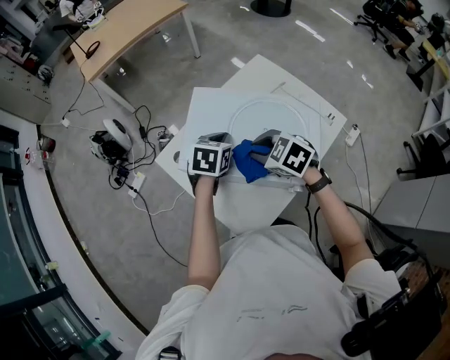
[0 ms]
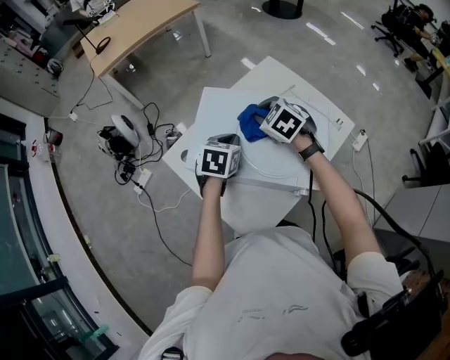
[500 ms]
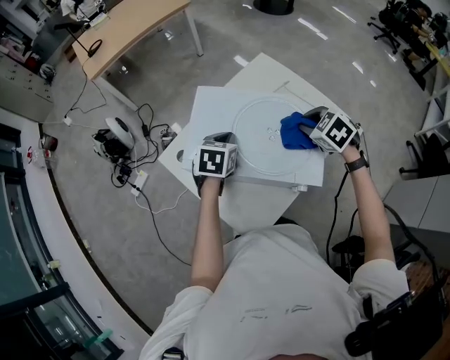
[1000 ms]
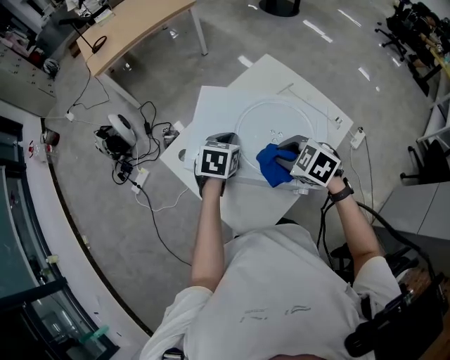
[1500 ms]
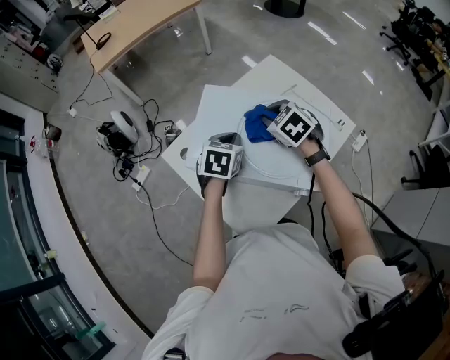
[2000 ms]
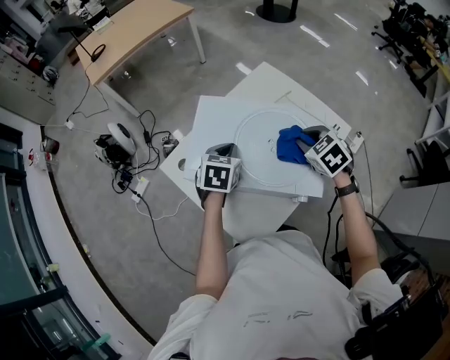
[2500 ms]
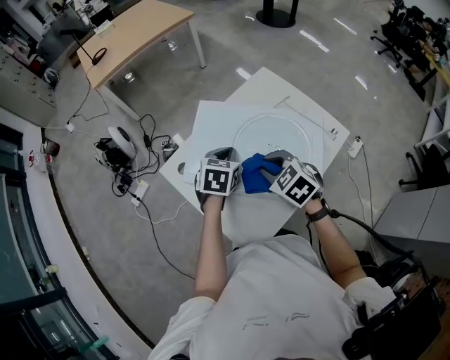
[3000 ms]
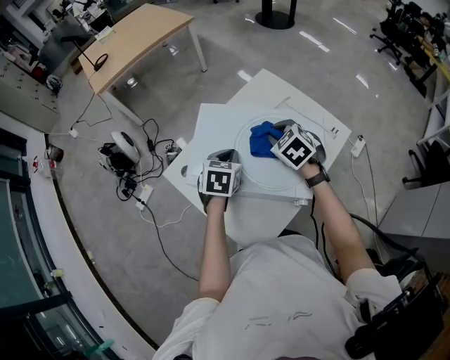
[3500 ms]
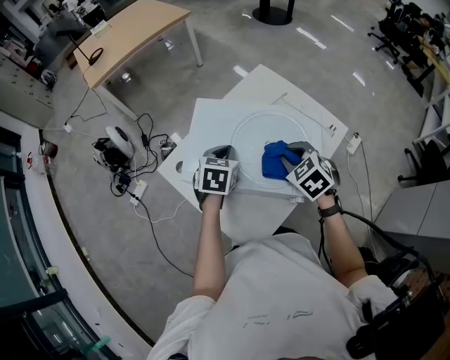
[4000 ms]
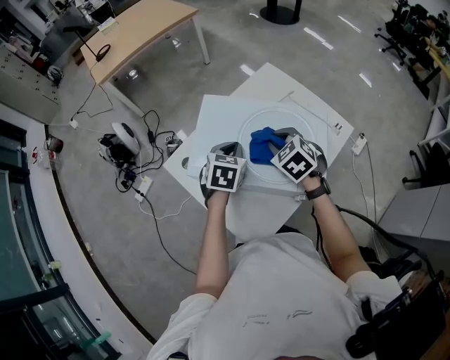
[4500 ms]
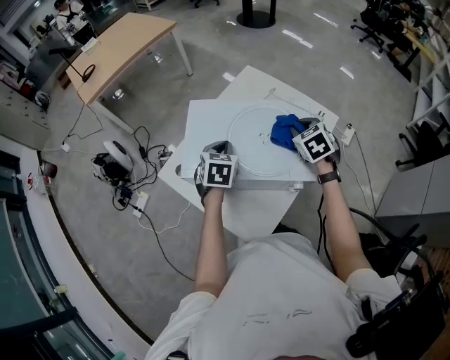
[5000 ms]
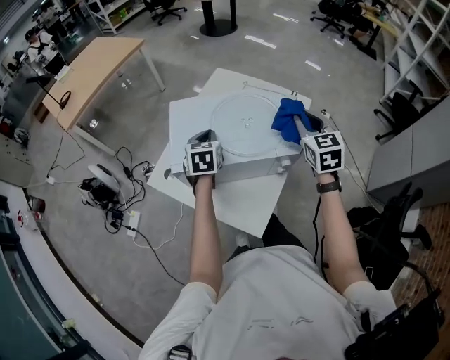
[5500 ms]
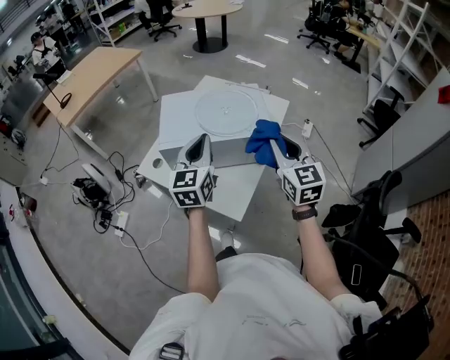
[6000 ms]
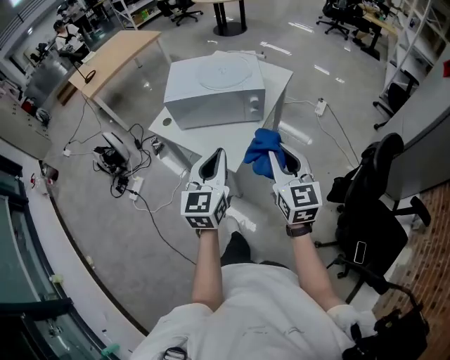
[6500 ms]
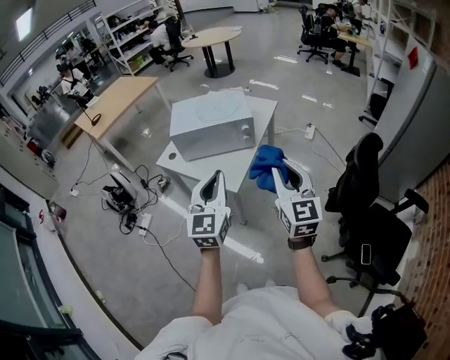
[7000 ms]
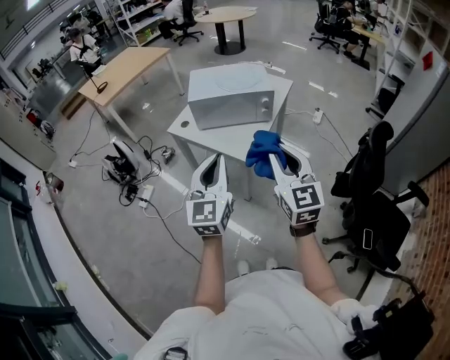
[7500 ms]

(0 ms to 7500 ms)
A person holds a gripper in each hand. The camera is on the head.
0 ms - 2000 ms: The right gripper travels forward by about 10 cm, and reaches approximately 15 cm to the right, then returns.
2000 ms - 4000 ms: The right gripper moves left and right over some 10 cm, changing direction 2 times.
4000 ms - 5500 ms: The right gripper moves to the right and upward, some 15 cm, and tips its fingers upward by about 30 degrees.
5500 ms - 7500 ms: The pair of grippers is taken backward, roughly 50 cm. The right gripper changes its angle by about 20 degrees. Meanwhile the left gripper points its fingers about 40 degrees further upward.

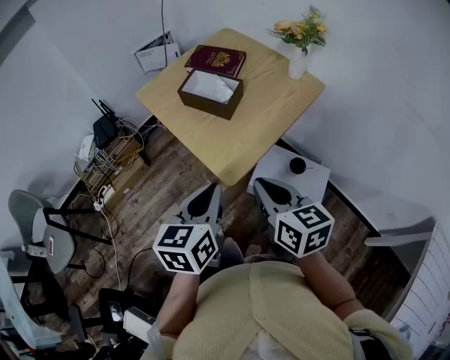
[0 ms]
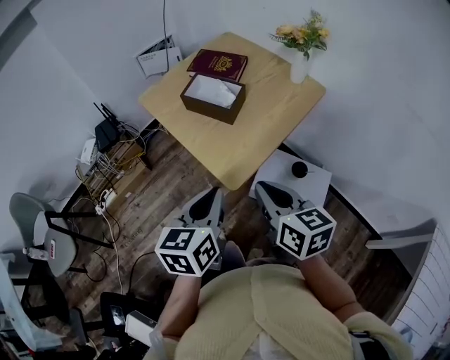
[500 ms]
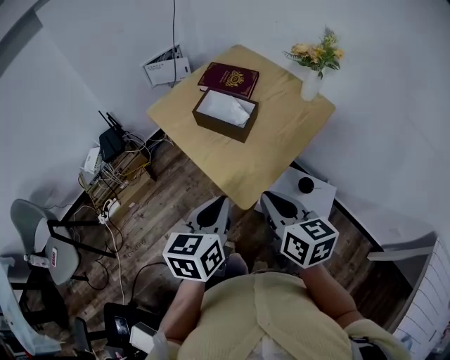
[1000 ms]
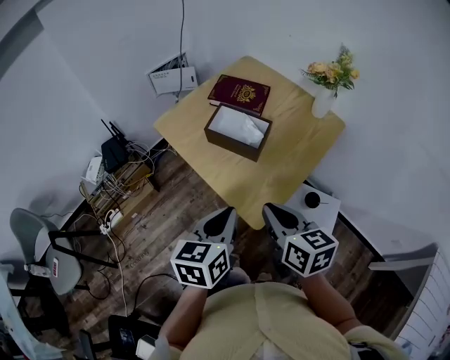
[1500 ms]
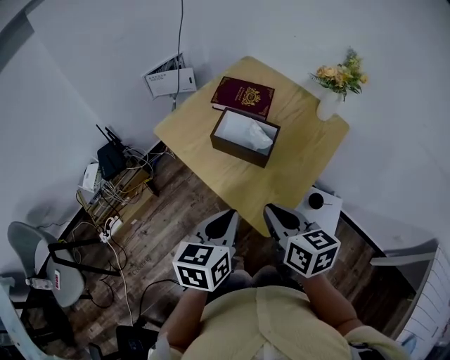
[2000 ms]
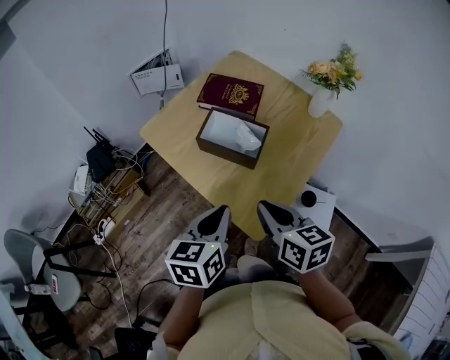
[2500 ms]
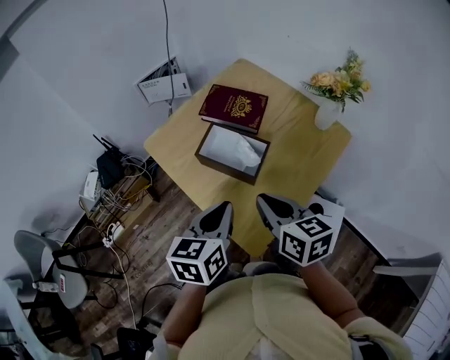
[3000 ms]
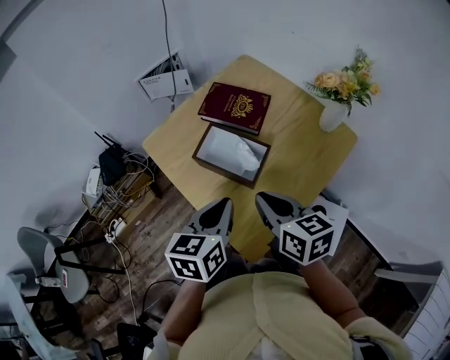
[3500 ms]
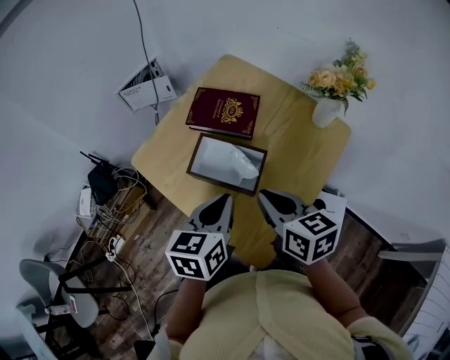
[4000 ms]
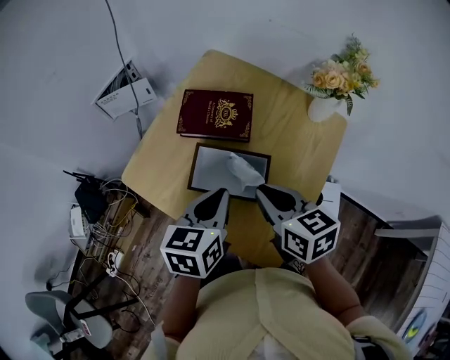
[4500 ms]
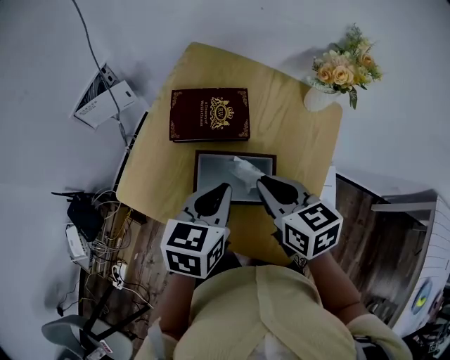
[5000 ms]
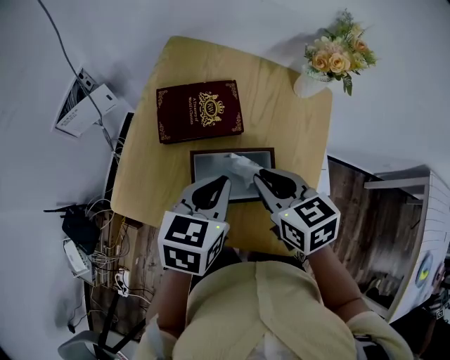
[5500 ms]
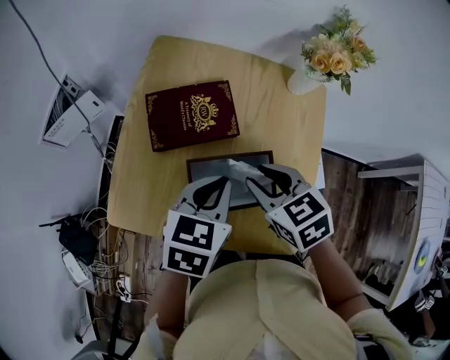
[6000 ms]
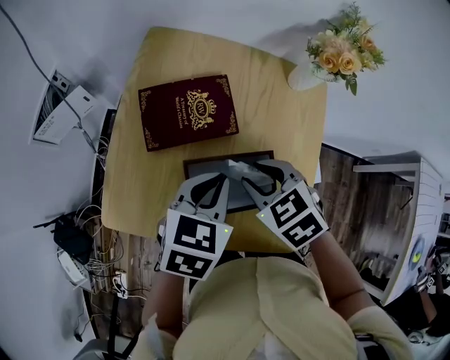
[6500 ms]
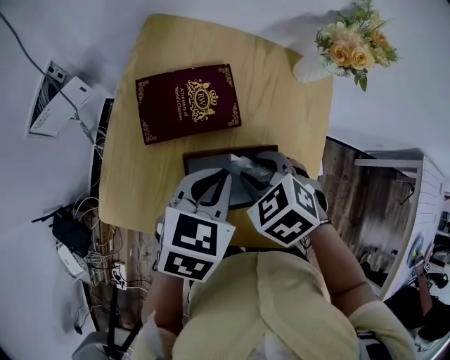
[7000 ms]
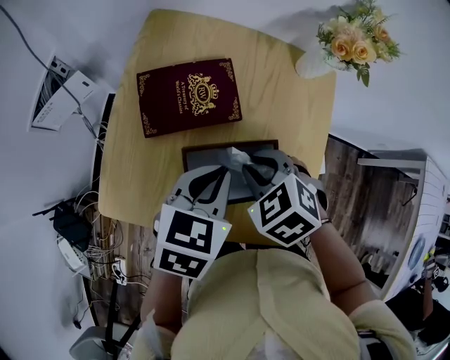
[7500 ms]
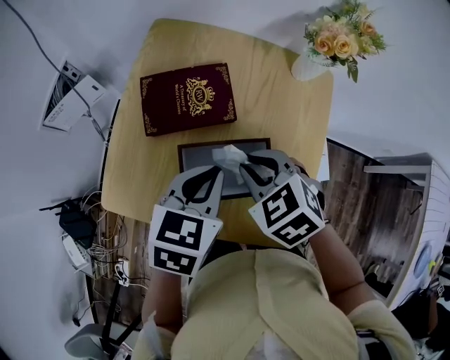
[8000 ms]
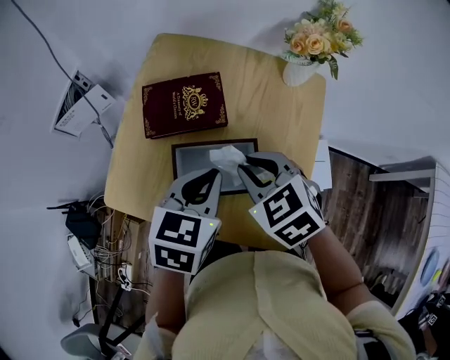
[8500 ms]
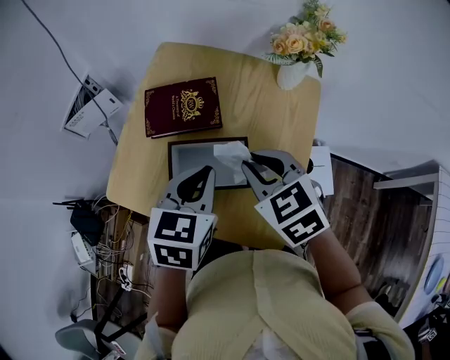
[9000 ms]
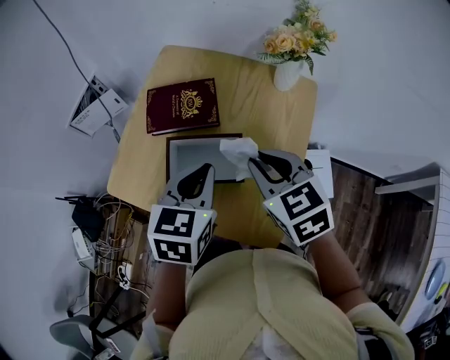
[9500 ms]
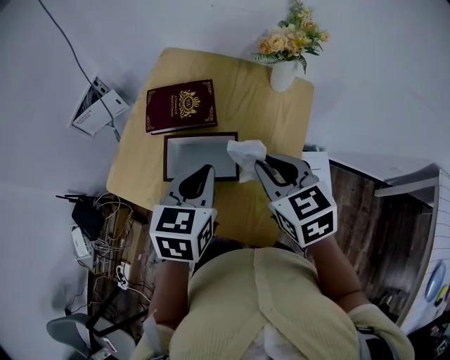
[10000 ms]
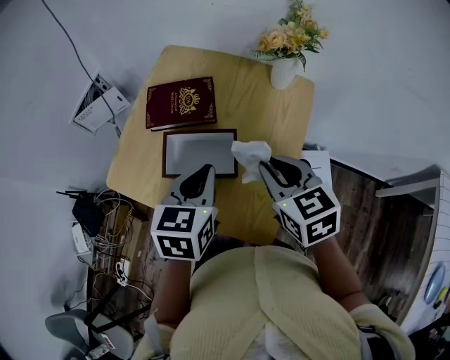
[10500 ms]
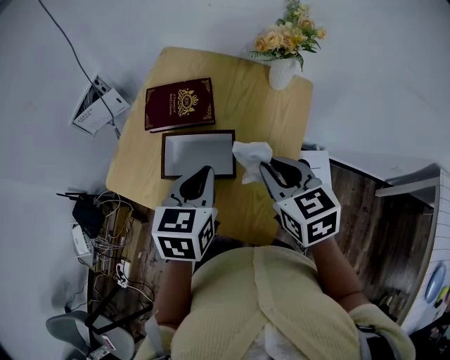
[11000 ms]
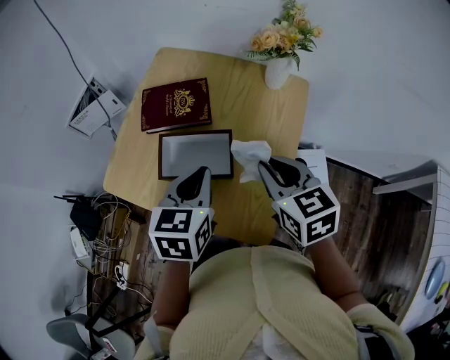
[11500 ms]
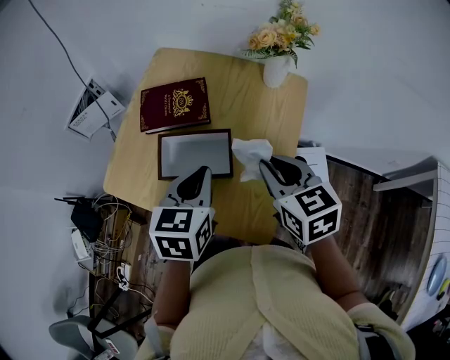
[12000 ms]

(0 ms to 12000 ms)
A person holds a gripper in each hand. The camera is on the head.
0 ms - 2000 ms: Both grippers travel together forward and to the left, roughly 15 cm.
2000 ms - 4000 ms: Both grippers move forward, some 15 cm.
4000 ms - 6000 ms: The left gripper ends up some 10 cm from where it was, and swivels roughly 40 degrees. Meanwhile the right gripper shifts by roughly 10 cm, and changes its angle by some 30 degrees.
6000 ms - 8000 ms: The right gripper turns by roughly 20 degrees.
8000 ms - 10000 ms: The right gripper moves to the right, upward and backward, about 15 cm, and changes its angle by approximately 30 degrees; the left gripper shifts by about 5 cm.
10000 ms - 12000 ms: The grippers stay close to where they were, moving slightly.

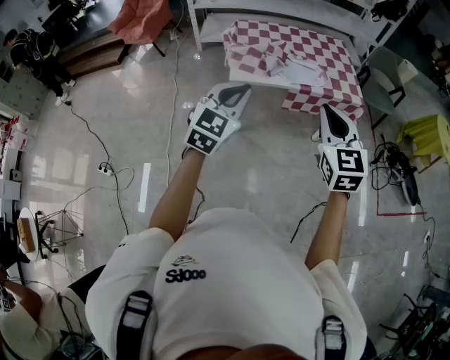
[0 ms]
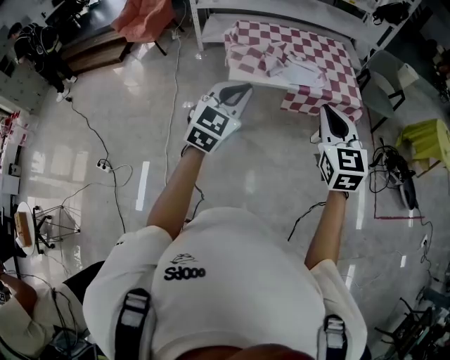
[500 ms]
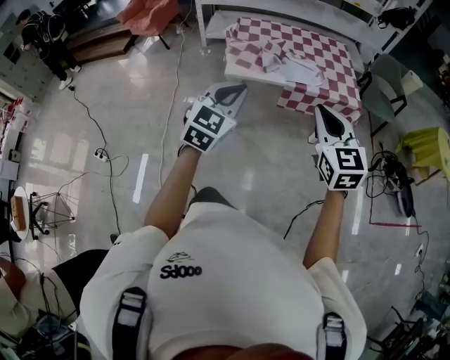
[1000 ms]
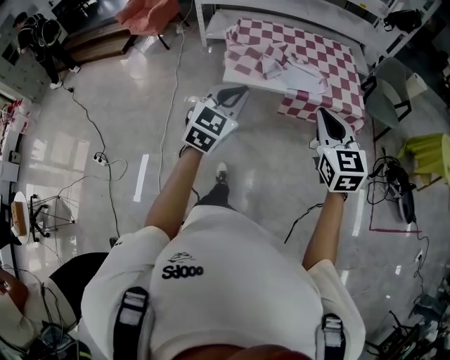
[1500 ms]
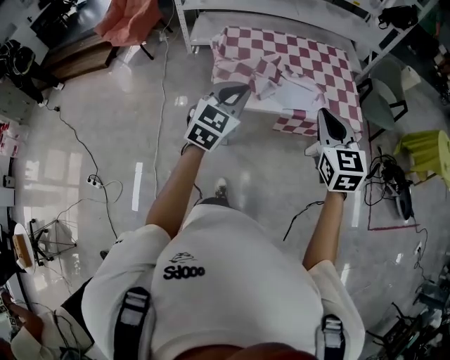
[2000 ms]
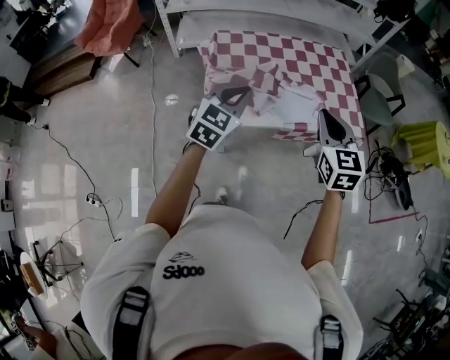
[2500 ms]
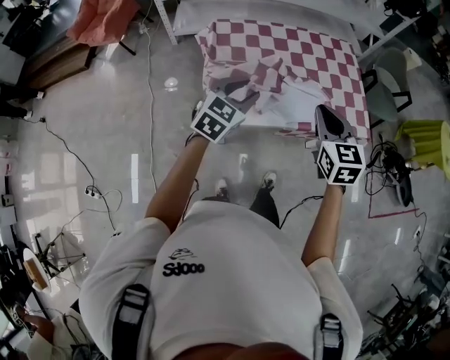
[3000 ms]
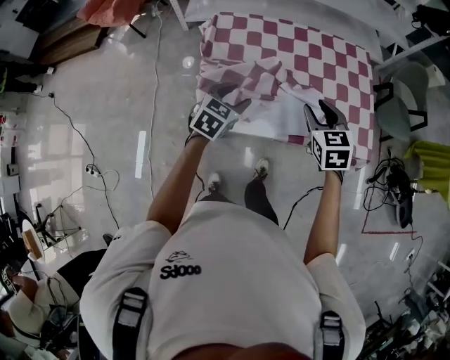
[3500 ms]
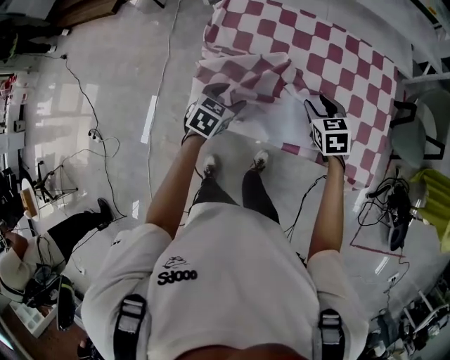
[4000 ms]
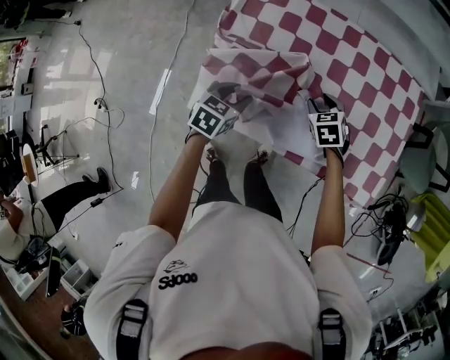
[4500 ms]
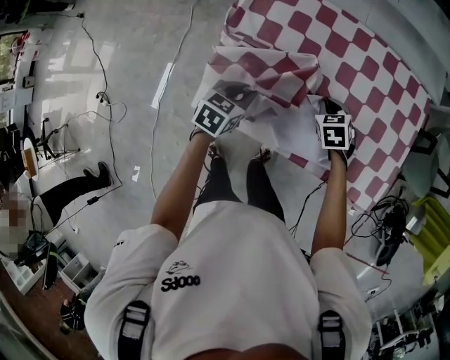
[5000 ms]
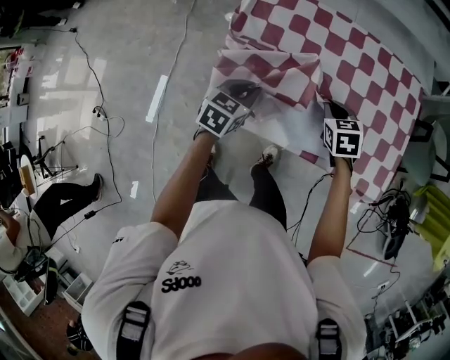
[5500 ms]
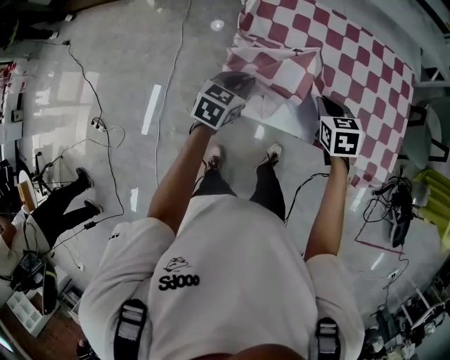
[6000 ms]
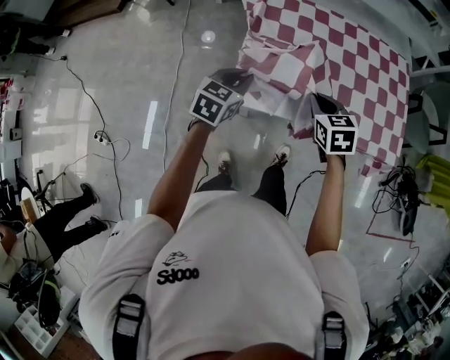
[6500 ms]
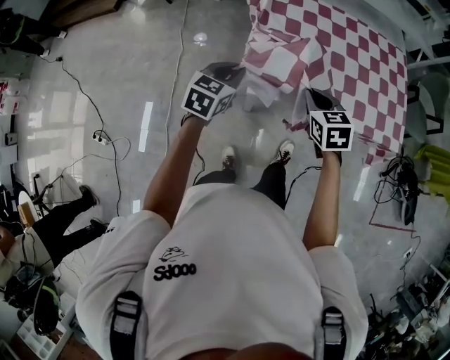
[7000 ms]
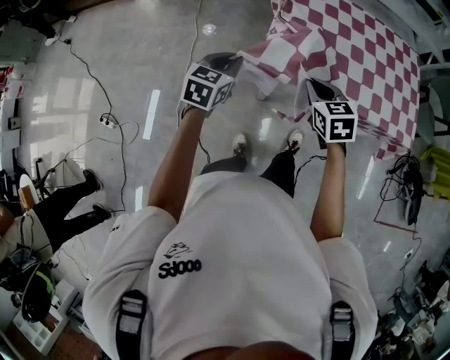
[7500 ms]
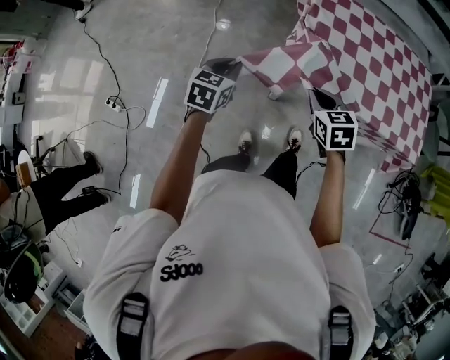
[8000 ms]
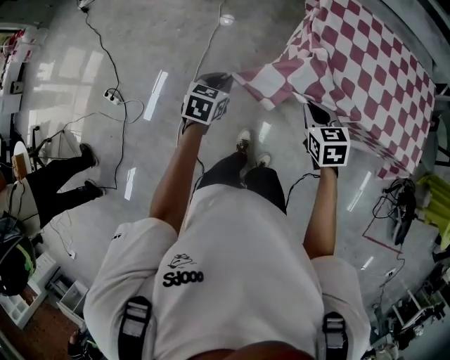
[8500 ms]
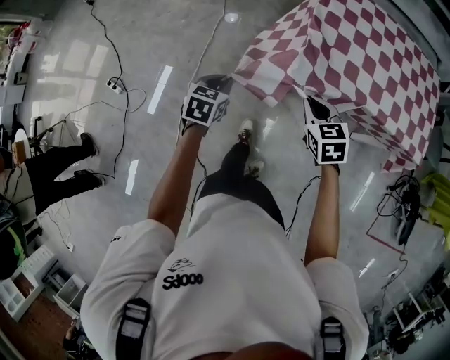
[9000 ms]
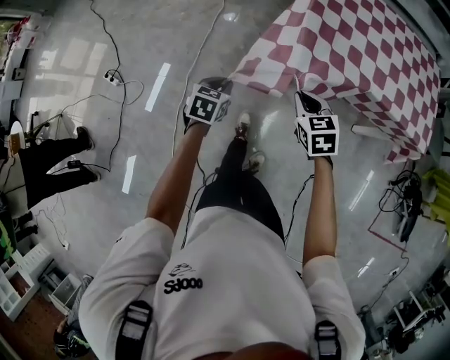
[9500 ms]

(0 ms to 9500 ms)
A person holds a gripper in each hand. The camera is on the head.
0 ms - 2000 ms: Both grippers move forward, roughly 20 cm.
2000 ms - 4000 ms: The left gripper shifts approximately 40 cm downward and forward, tilts its fingers roughly 30 degrees downward, and opens; the right gripper shifts approximately 50 cm forward and downward, tilts its fingers approximately 30 degrees downward, and opens its fingers.
4000 ms - 5500 ms: The right gripper closes its fingers. Meanwhile the left gripper closes.
5500 ms - 7500 ms: The grippers both shift to the left and backward by some 35 cm.
7500 ms - 9500 ms: The right gripper travels backward, downward and to the left by roughly 20 cm, while the left gripper goes roughly 25 cm backward and downward, and rotates about 20 degrees.
